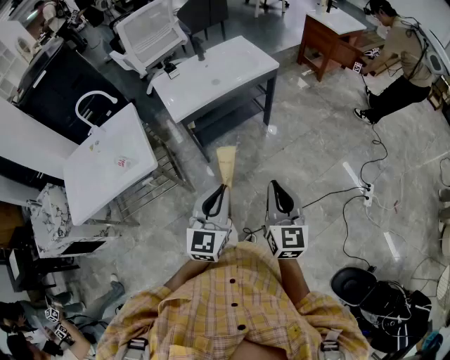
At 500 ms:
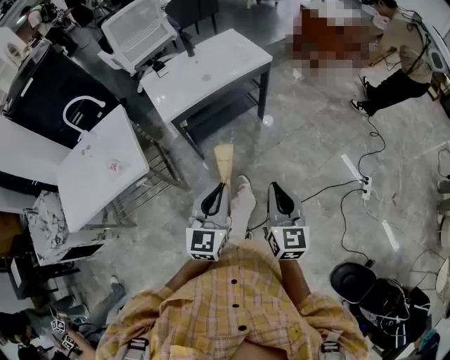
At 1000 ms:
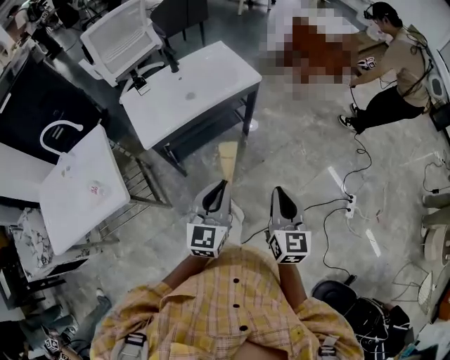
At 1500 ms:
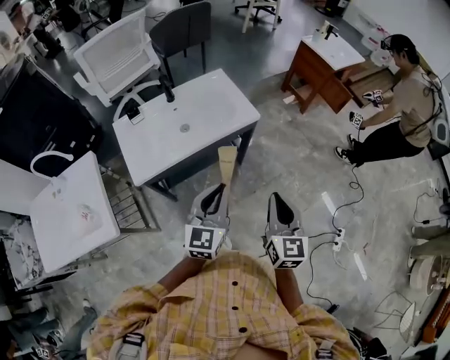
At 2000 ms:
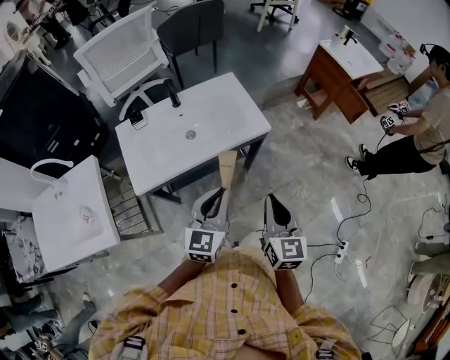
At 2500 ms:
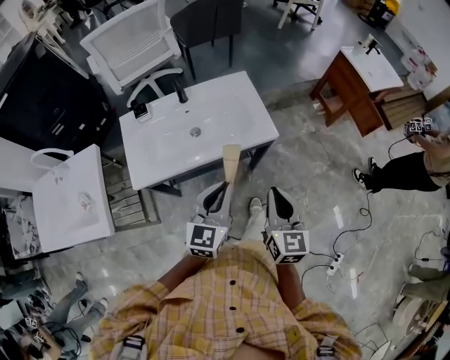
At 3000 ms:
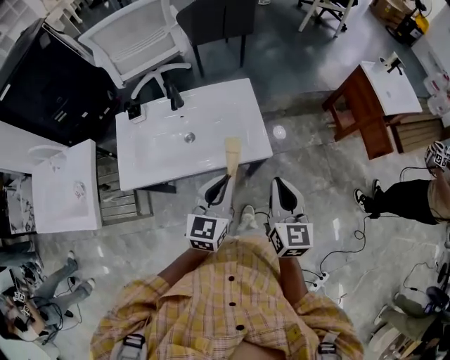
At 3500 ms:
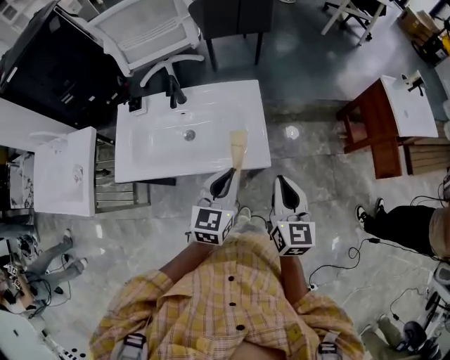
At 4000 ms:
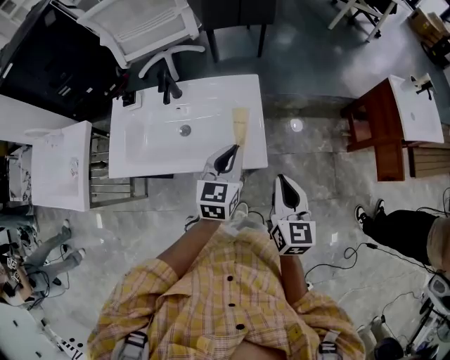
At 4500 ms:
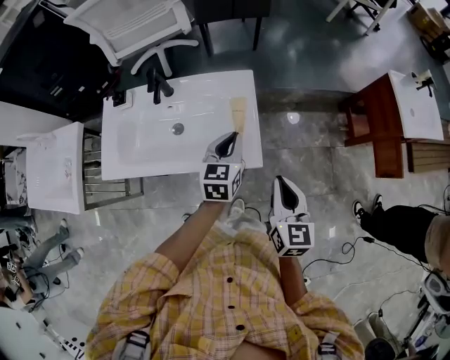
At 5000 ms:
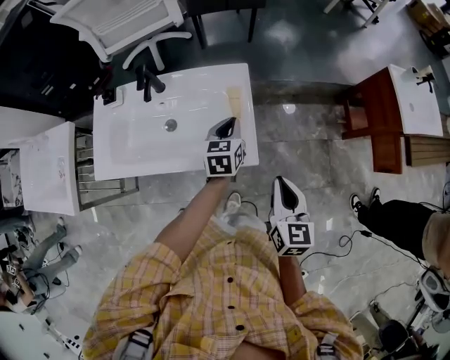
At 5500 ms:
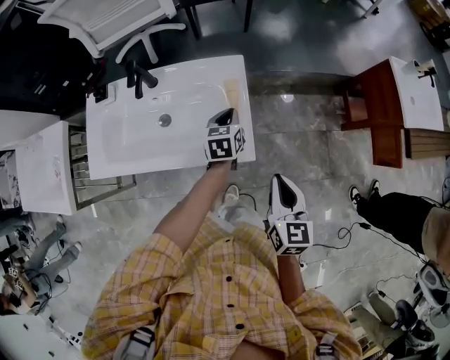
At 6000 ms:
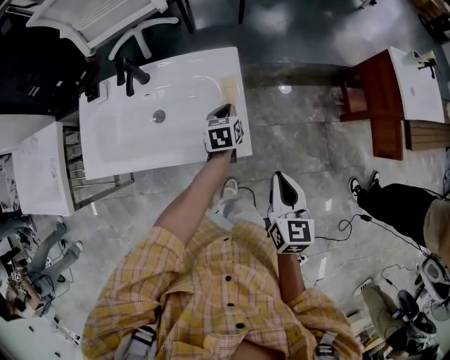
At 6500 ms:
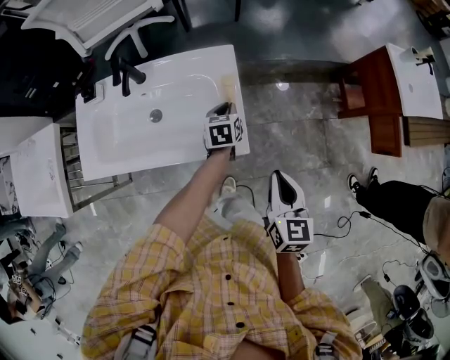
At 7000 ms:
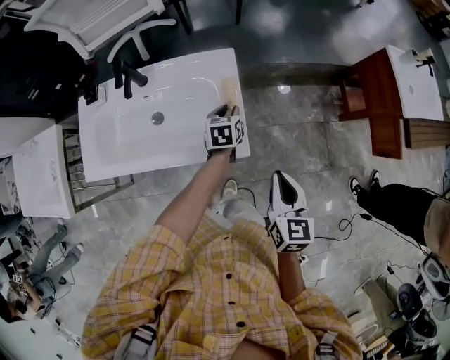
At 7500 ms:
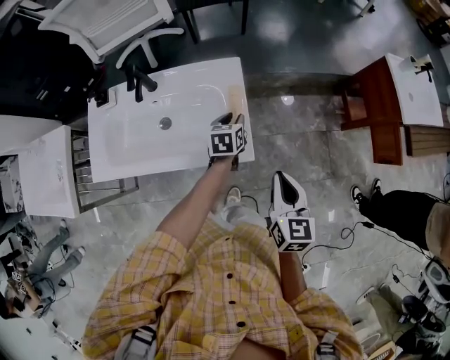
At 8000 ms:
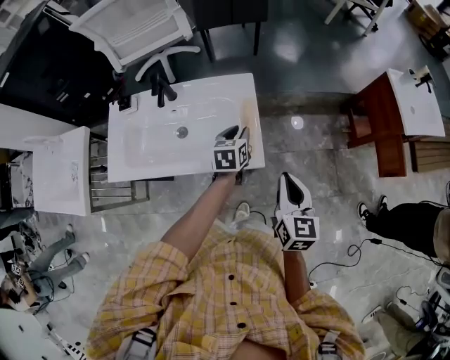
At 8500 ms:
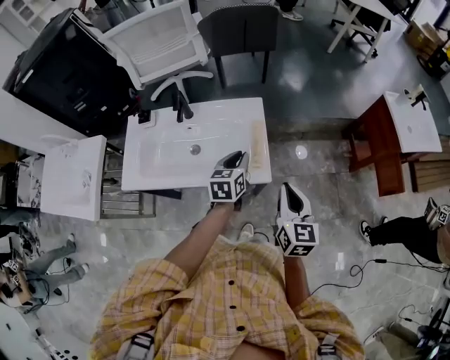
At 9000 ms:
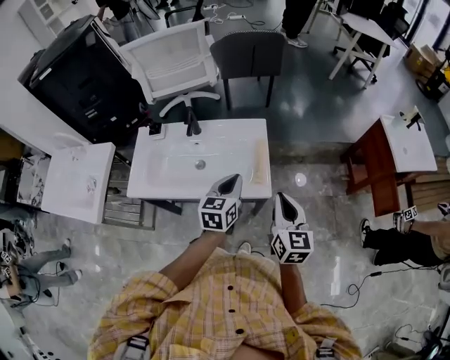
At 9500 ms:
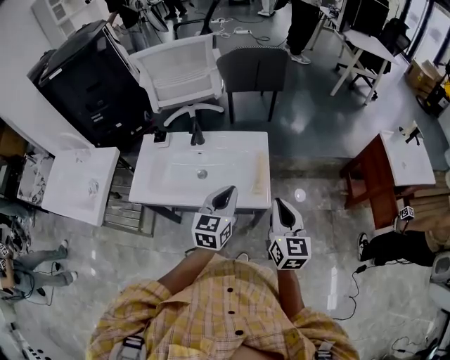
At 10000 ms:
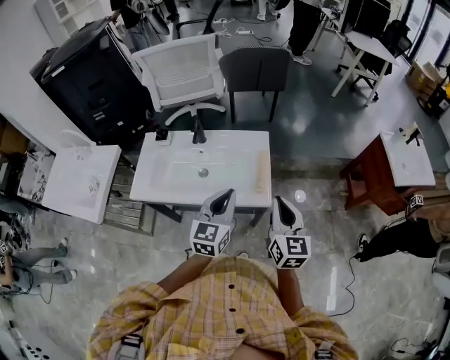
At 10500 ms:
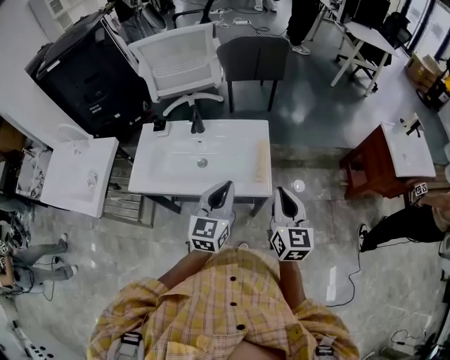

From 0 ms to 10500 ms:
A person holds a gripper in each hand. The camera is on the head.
From 0 ms to 2000 ms: Both grippers are carried forward, some 40 cm.
From 2000 ms to 4000 ms: Both grippers travel together forward and to the right, some 35 cm. The left gripper swivels roughly 30 degrees. The right gripper swivels some 20 degrees.
From 4000 ms to 6500 ms: The right gripper is displaced downward by approximately 5 cm. The left gripper shifts approximately 25 cm downward and forward, and rotates some 30 degrees.
From 6500 ms to 8500 ms: The right gripper goes approximately 10 cm upward, while the left gripper shifts some 20 cm upward and backward.
From 8500 ms to 10500 ms: The right gripper is displaced upward by roughly 5 cm; the left gripper moves upward and backward, some 20 cm, and changes its angle by approximately 30 degrees.

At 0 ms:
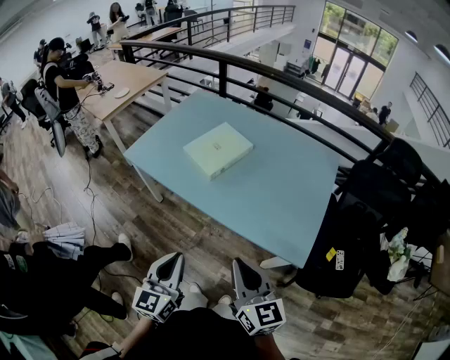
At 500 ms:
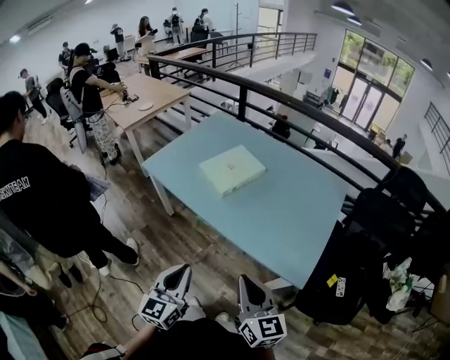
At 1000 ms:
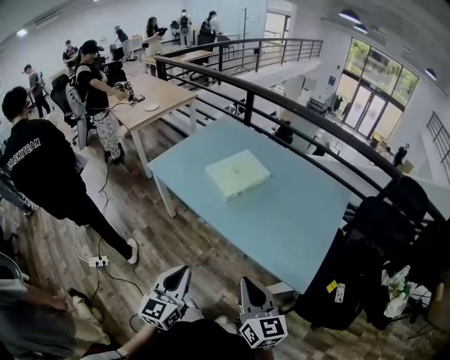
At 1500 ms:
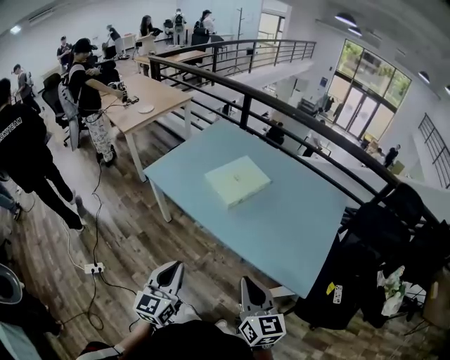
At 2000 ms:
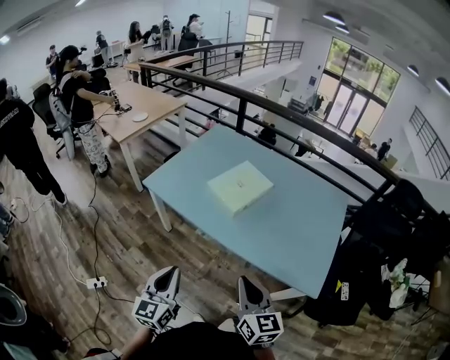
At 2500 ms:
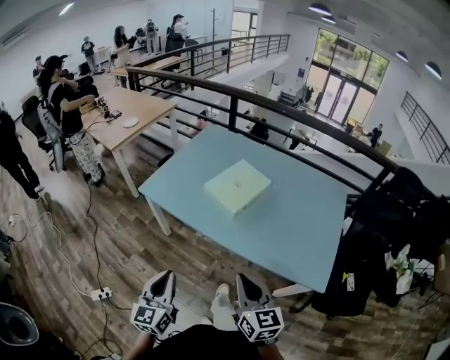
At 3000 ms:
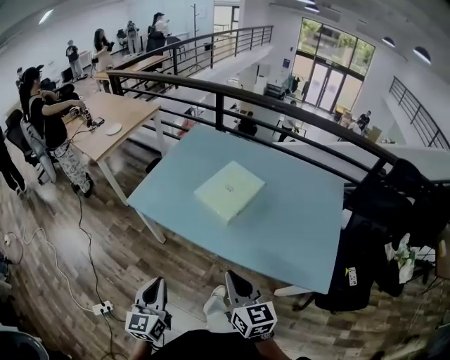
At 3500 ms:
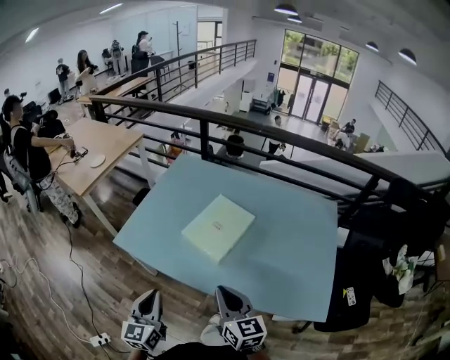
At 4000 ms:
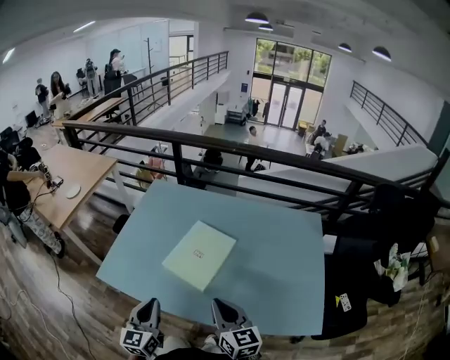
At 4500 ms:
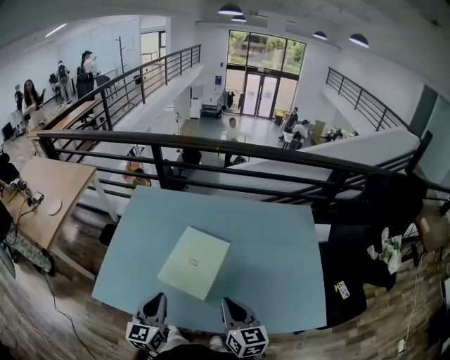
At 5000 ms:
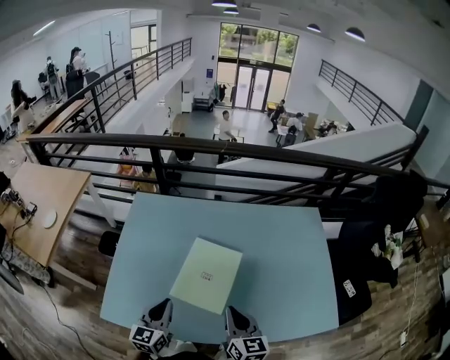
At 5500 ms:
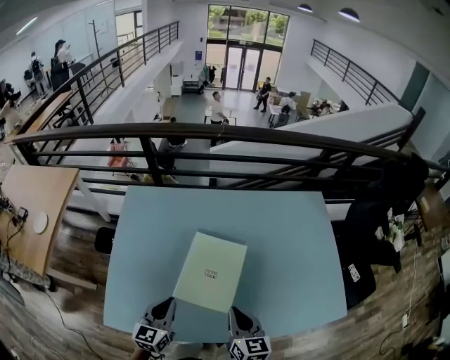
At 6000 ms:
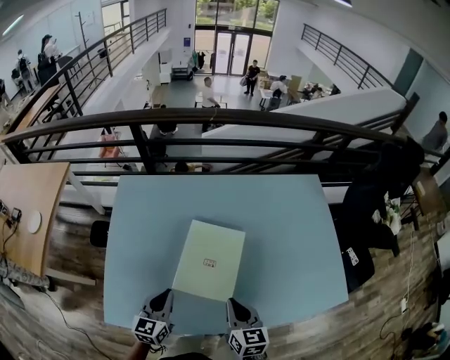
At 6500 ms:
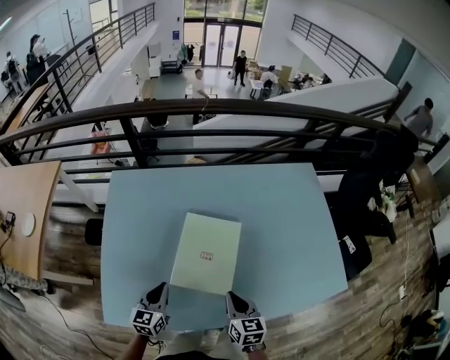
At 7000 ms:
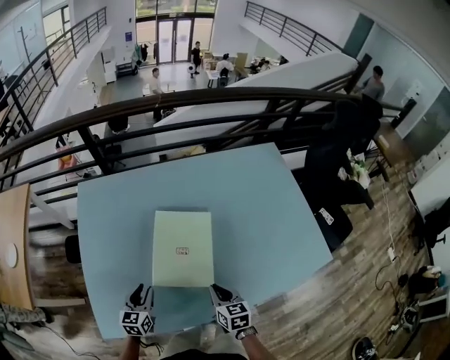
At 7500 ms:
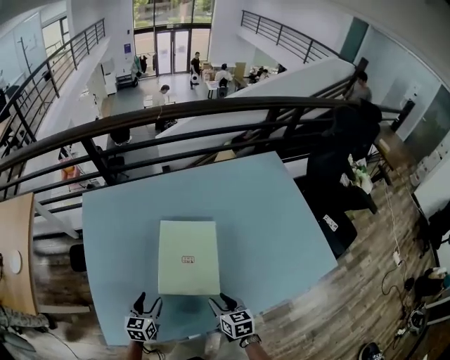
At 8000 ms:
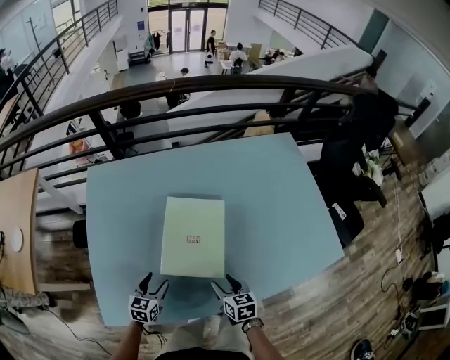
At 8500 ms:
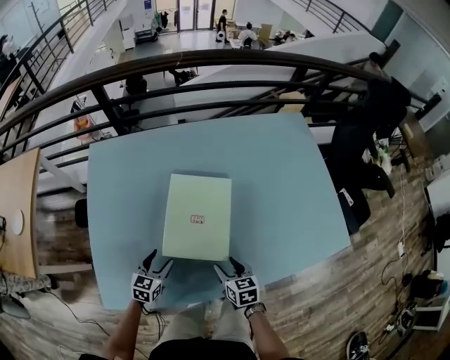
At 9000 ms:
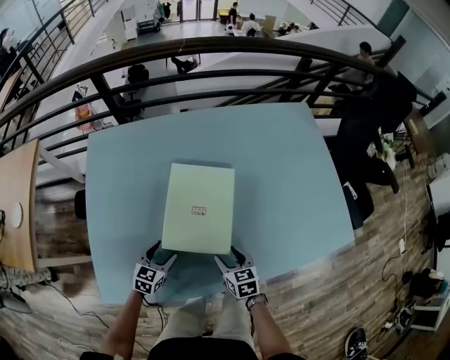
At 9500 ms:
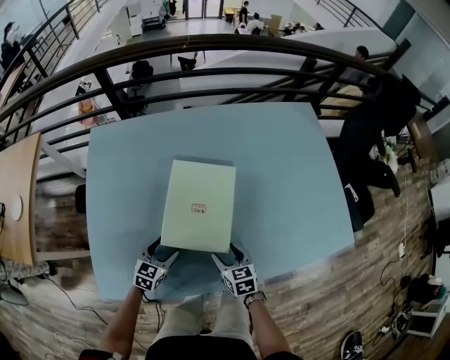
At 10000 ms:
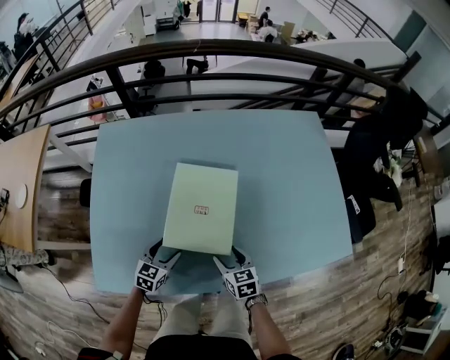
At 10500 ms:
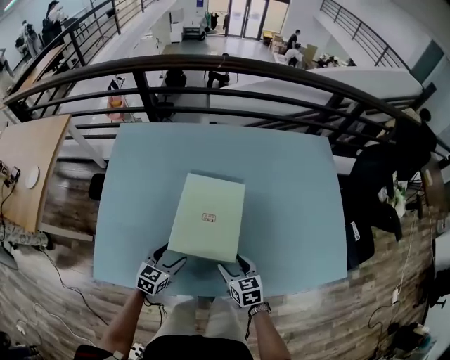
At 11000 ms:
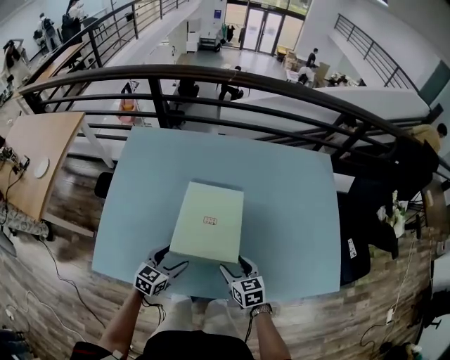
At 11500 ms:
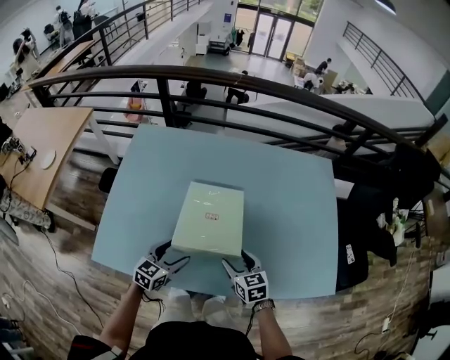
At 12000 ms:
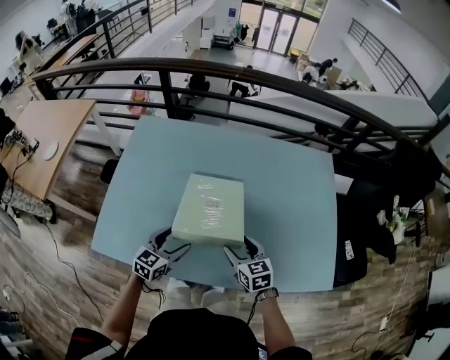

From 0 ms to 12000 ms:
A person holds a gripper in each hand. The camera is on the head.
From 0 ms to 2000 ms: Both grippers travel together to the left, about 10 cm.
From 2000 ms to 4000 ms: The two grippers go some 30 cm forward.
From 4000 ms to 6000 ms: The right gripper shifts by roughly 20 cm, and swivels approximately 30 degrees. The left gripper changes place by roughly 25 cm, and swivels roughly 30 degrees.
From 6000 ms to 8000 ms: Both grippers travel together downward, roughly 15 cm. The left gripper opens its fingers, while the right gripper opens up.
From 8000 ms to 10000 ms: The left gripper goes some 5 cm to the right.
From 10000 ms to 12000 ms: Both grippers move upward and to the right, some 15 cm.

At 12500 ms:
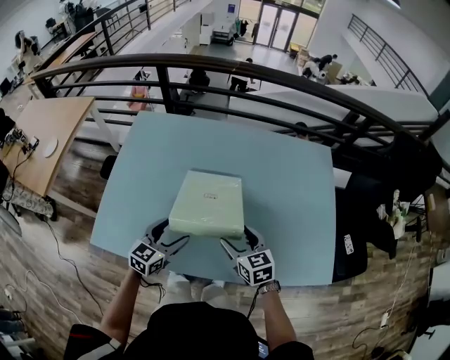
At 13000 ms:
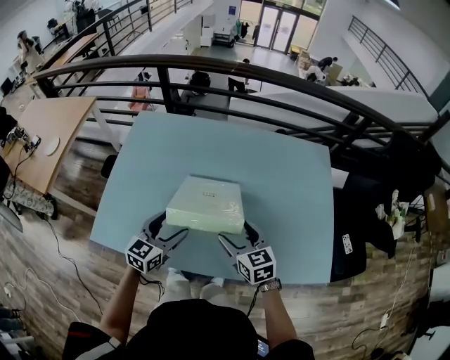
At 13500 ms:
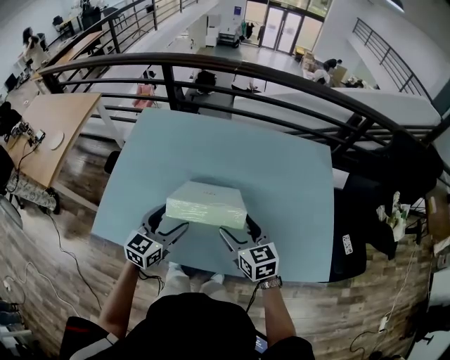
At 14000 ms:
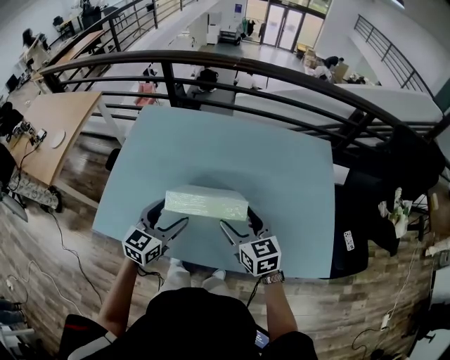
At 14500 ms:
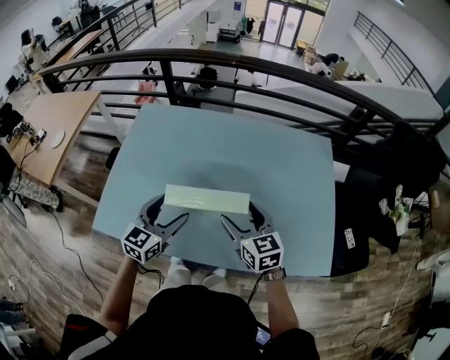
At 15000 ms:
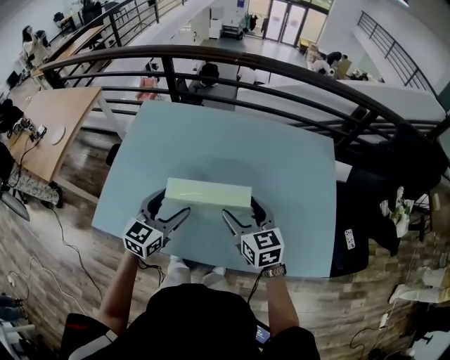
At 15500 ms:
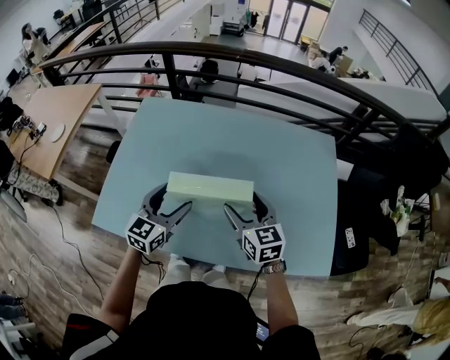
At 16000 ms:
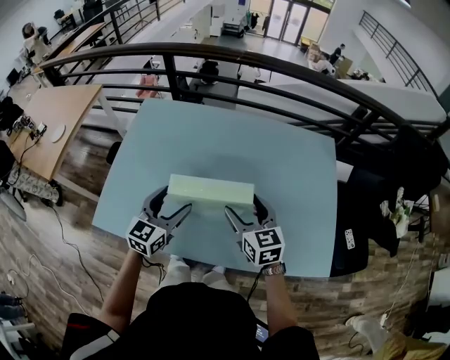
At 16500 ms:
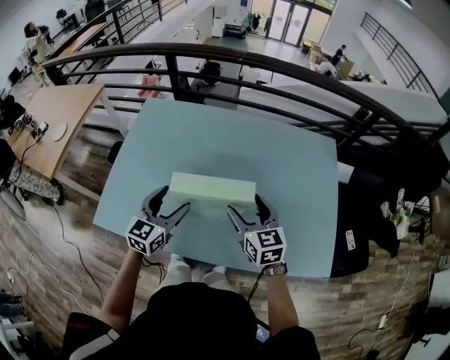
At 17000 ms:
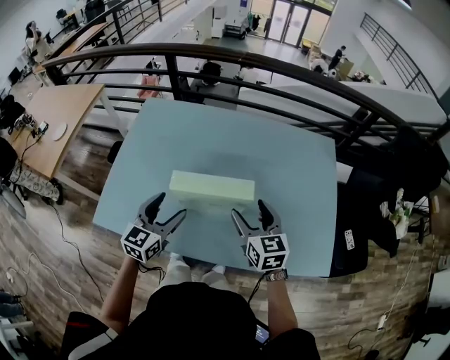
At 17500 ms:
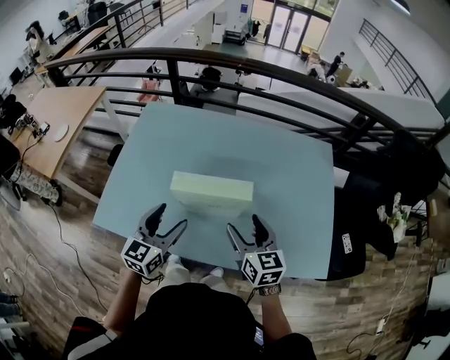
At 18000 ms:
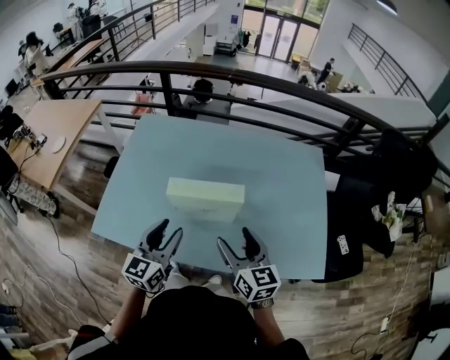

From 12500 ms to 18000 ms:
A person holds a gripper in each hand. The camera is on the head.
From 12500 ms to 14500 ms: Both grippers travel together upward, roughly 10 cm.
From 14500 ms to 16000 ms: The grippers move only a little.
From 16000 ms to 18000 ms: The two grippers go approximately 10 cm backward. The left gripper closes.
